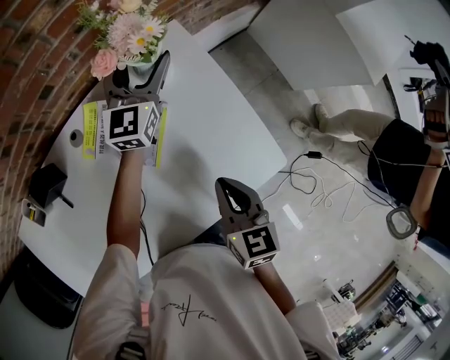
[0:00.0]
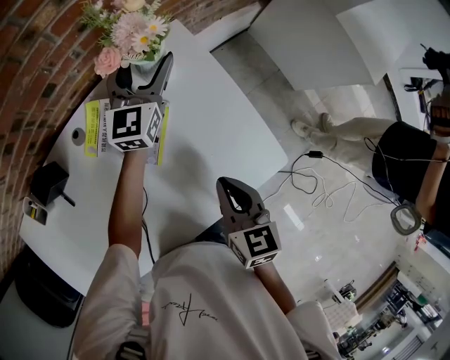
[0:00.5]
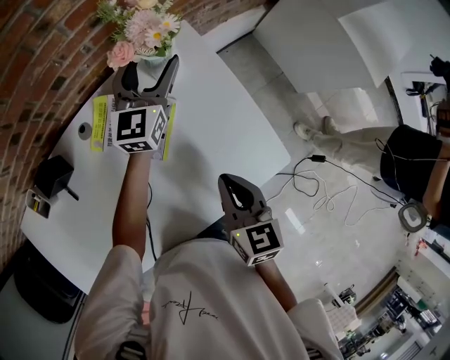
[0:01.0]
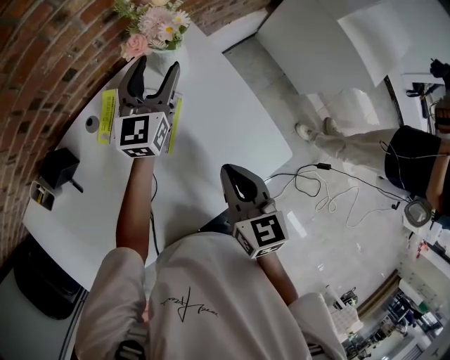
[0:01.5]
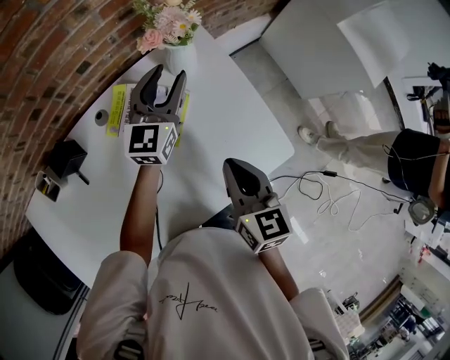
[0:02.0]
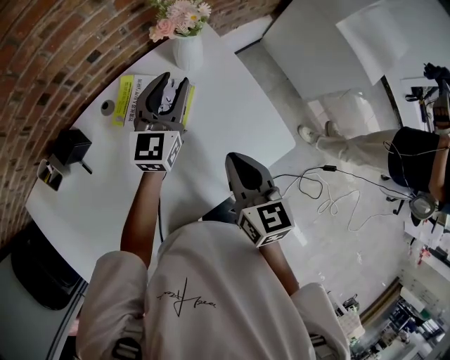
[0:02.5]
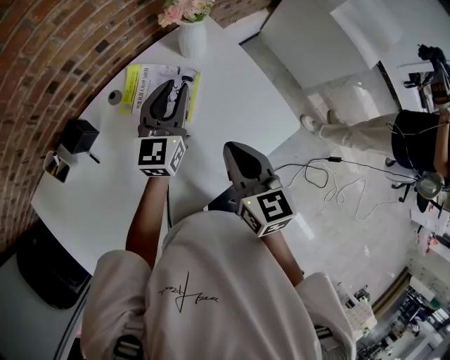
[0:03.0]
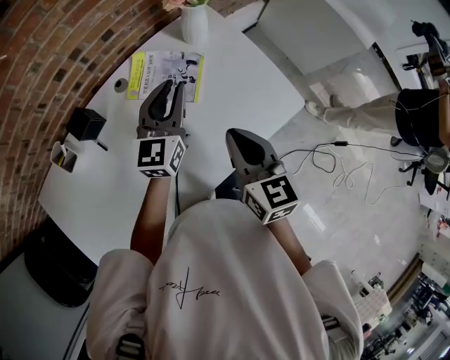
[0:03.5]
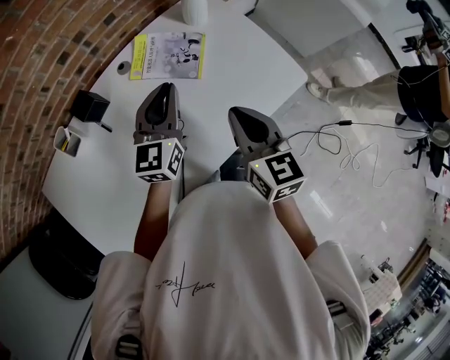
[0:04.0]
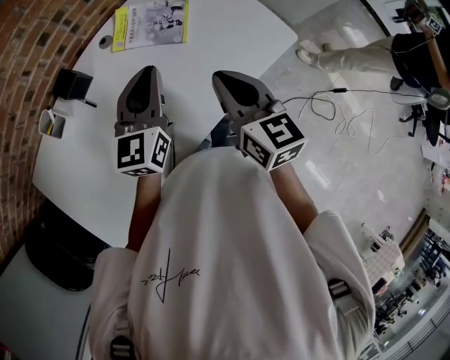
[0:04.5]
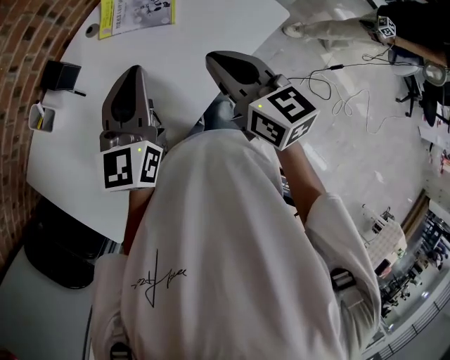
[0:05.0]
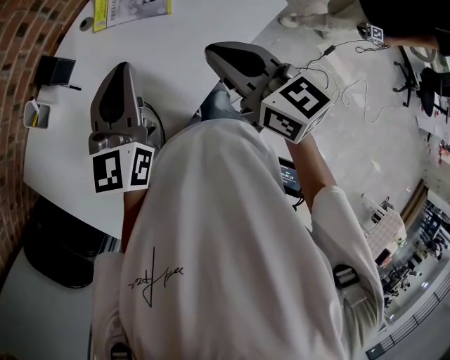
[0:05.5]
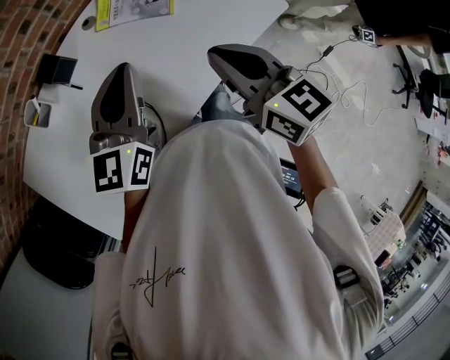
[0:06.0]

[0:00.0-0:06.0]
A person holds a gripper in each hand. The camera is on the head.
0:00.0 to 0:02.0: The right gripper heads upward, covering about 5 cm. Meanwhile the left gripper travels backward by approximately 10 cm, and closes.
0:02.0 to 0:04.0: The right gripper heads backward and to the left, covering roughly 15 cm. Meanwhile the left gripper heads backward and to the left, covering approximately 25 cm, and closes its fingers.
0:04.0 to 0:06.0: The left gripper goes approximately 15 cm backward, to the left and upward. The right gripper moves backward, roughly 5 cm.

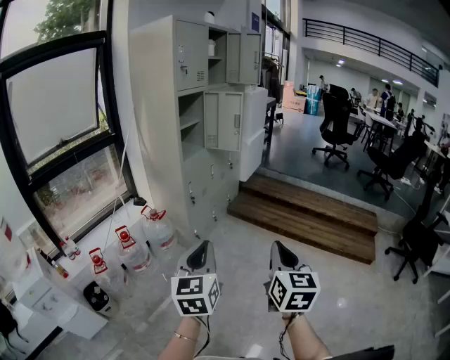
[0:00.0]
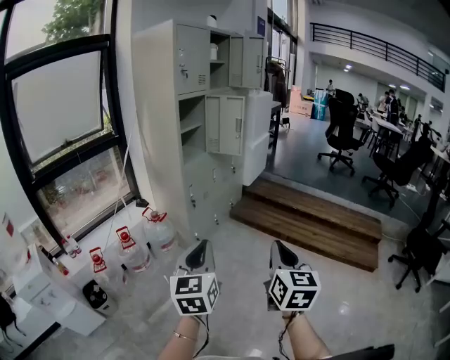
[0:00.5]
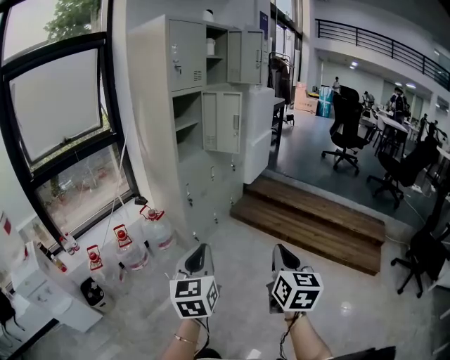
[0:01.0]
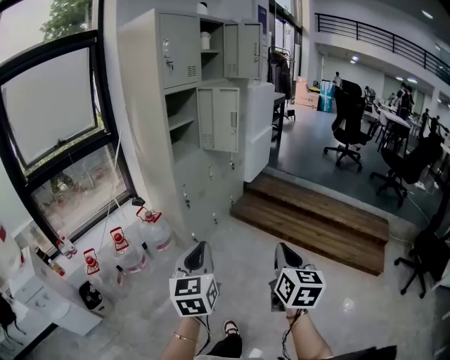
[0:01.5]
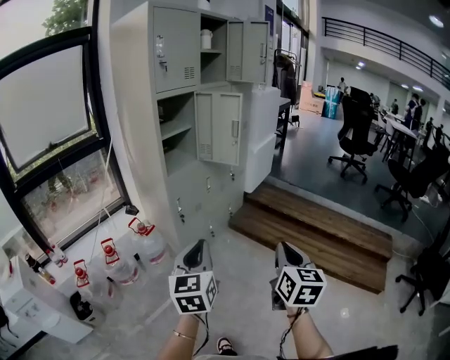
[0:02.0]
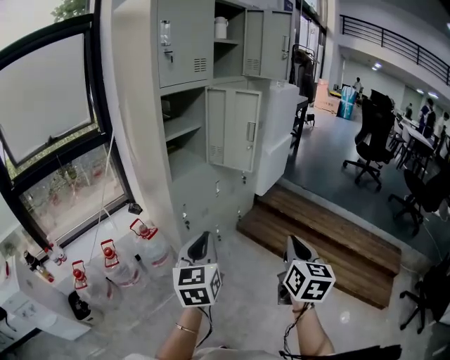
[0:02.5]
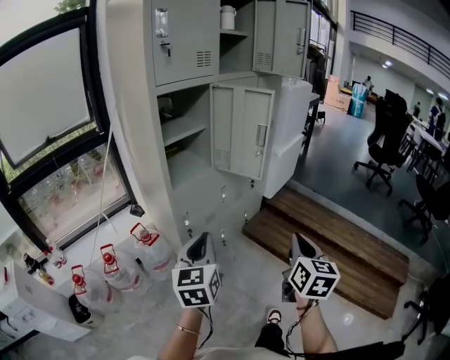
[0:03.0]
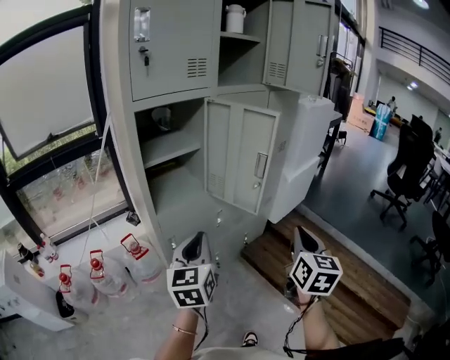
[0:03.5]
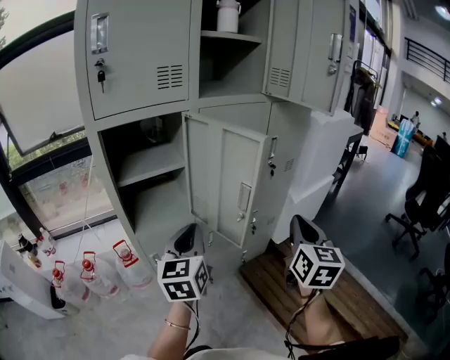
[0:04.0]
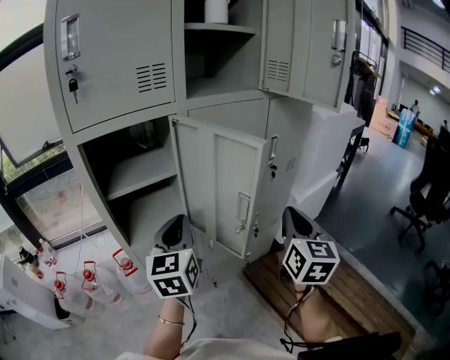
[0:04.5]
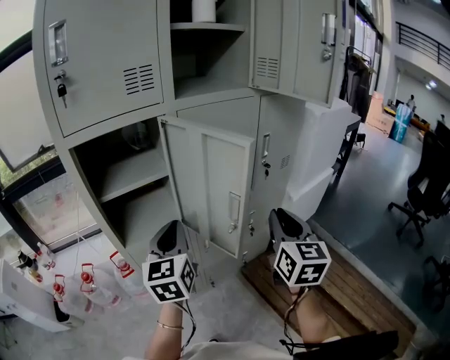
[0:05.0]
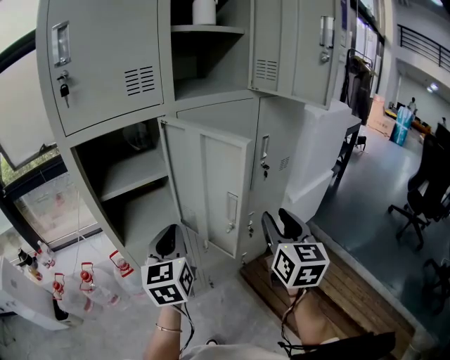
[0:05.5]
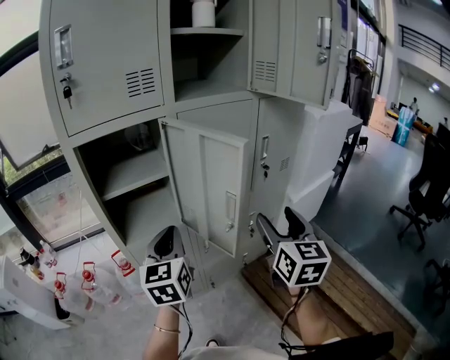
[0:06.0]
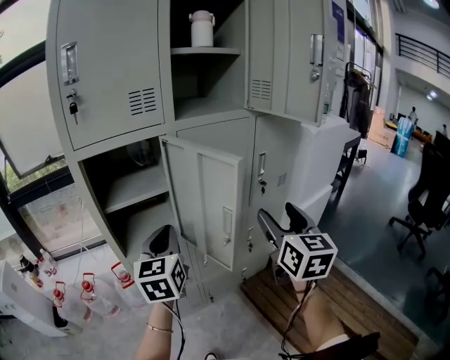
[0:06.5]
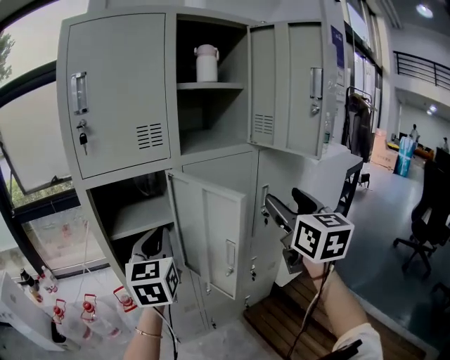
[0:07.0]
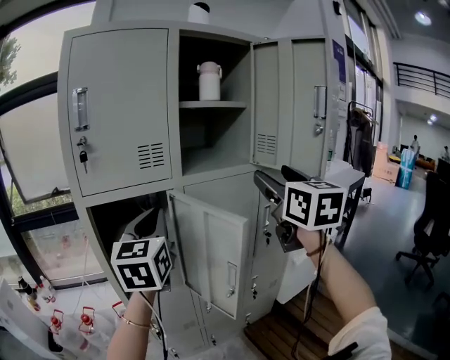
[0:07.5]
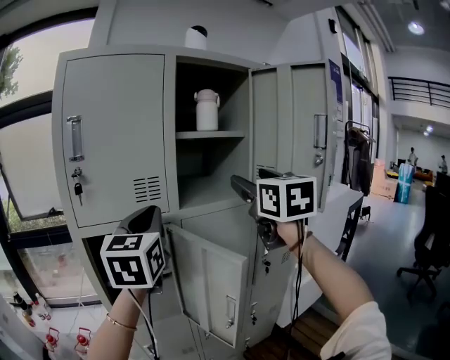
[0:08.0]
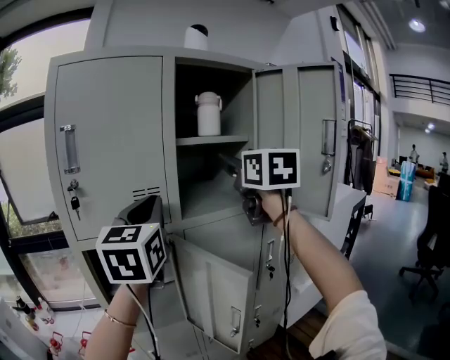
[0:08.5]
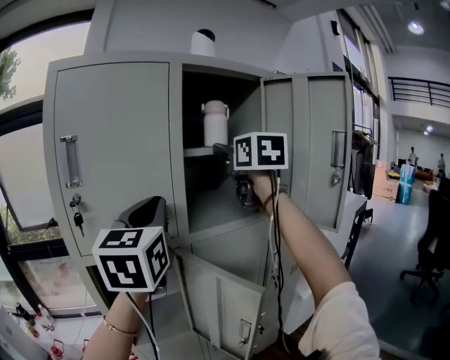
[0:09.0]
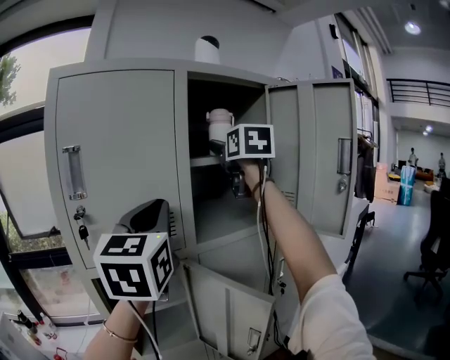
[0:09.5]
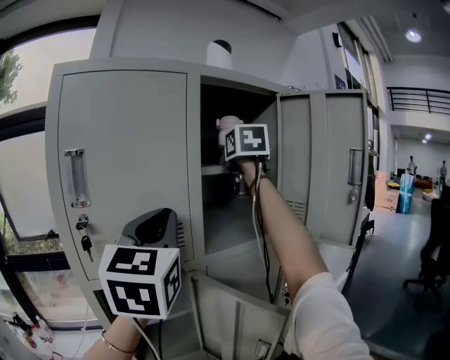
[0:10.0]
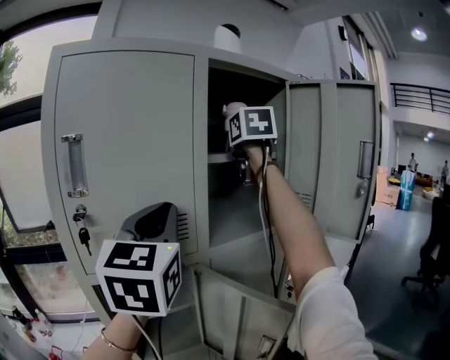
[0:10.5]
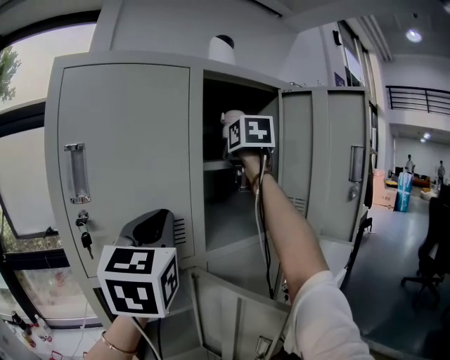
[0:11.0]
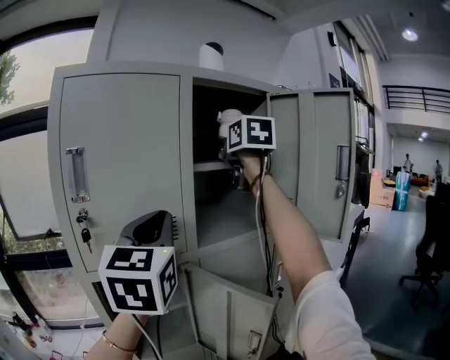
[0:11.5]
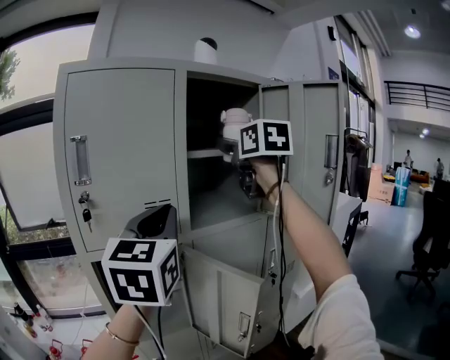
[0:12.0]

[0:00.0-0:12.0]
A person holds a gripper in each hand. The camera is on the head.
0:00.0 to 0:02.0: The right gripper is displaced forward and to the right by roughly 30 cm. Meanwhile the left gripper travels forward by about 25 cm.
0:02.0 to 0:04.0: The pair of grippers is taken forward, about 60 cm. The left gripper changes its angle by about 20 degrees; the right gripper rotates roughly 20 degrees.
0:04.0 to 0:06.0: The right gripper shifts approximately 5 cm forward, and opens up.
0:06.0 to 0:08.0: The right gripper shifts some 35 cm upward and forward; the left gripper is displaced upward by about 30 cm.
0:08.0 to 0:10.0: The left gripper moves upward, approximately 10 cm. The right gripper heads forward and upward, covering about 25 cm.
0:10.0 to 0:12.0: The right gripper moves backward, about 10 cm; the left gripper moves about 5 cm.

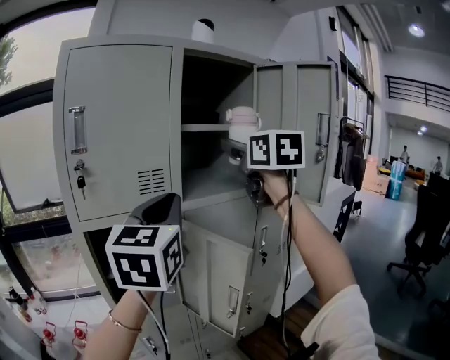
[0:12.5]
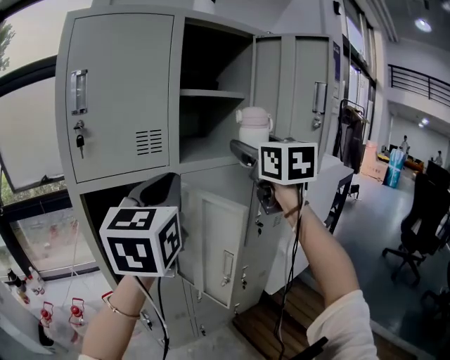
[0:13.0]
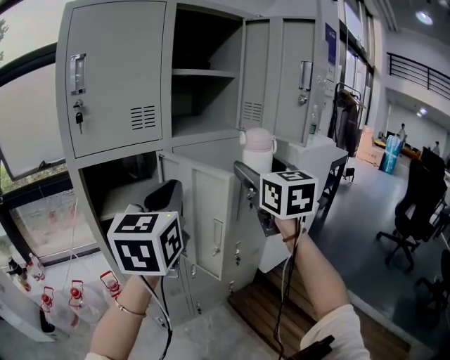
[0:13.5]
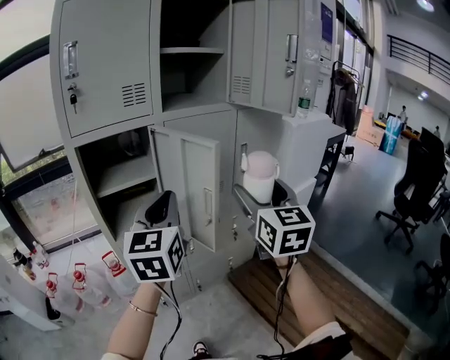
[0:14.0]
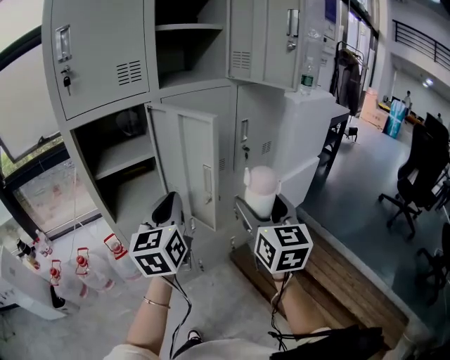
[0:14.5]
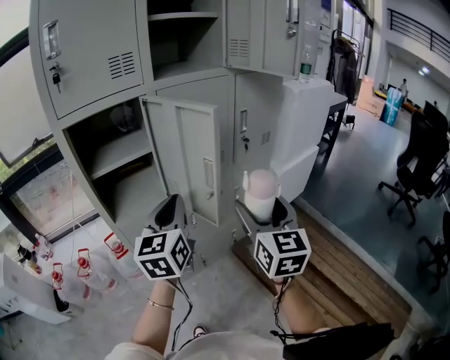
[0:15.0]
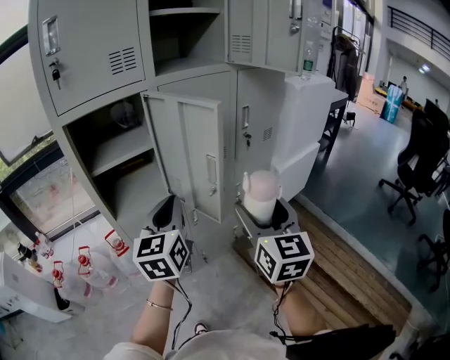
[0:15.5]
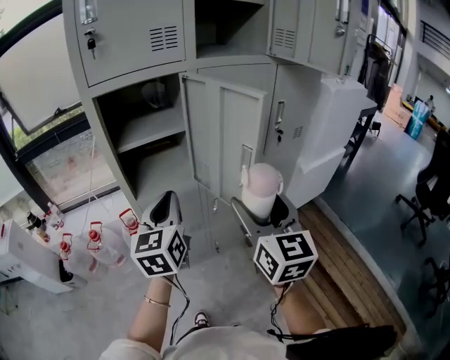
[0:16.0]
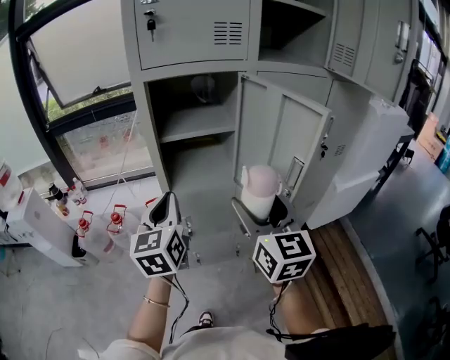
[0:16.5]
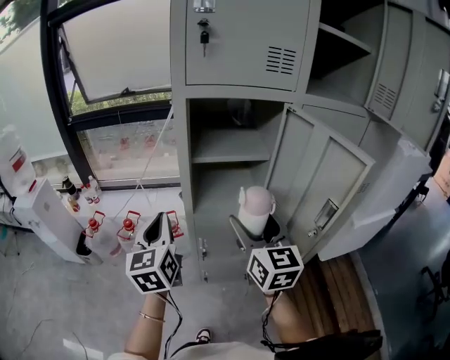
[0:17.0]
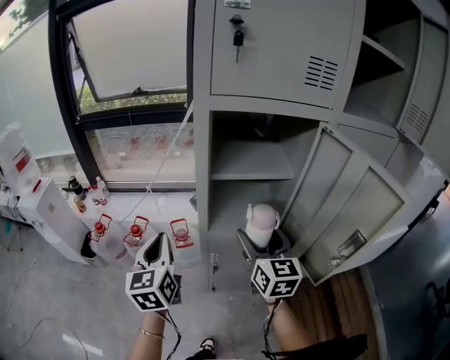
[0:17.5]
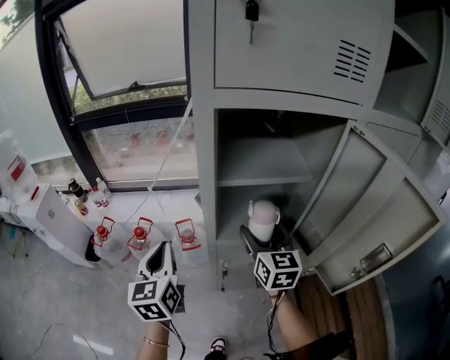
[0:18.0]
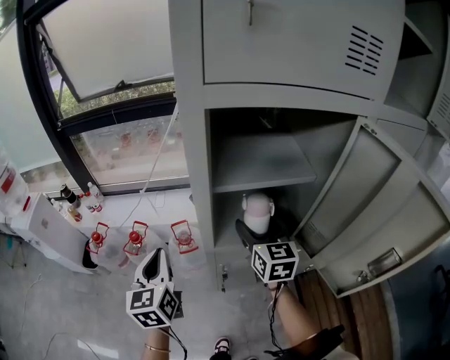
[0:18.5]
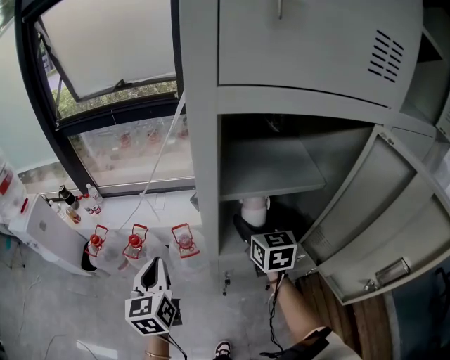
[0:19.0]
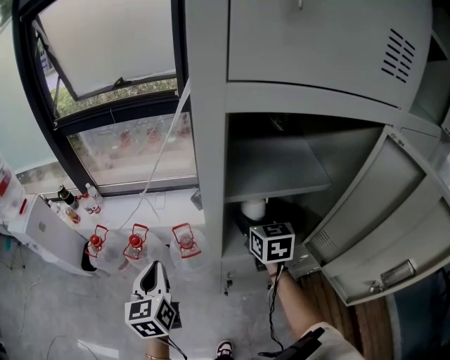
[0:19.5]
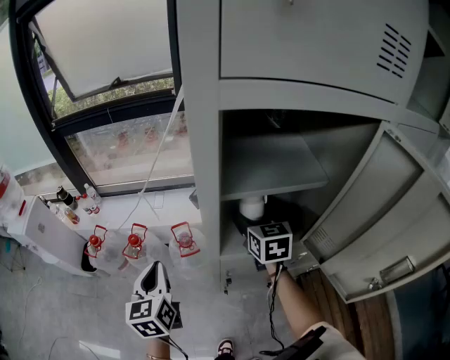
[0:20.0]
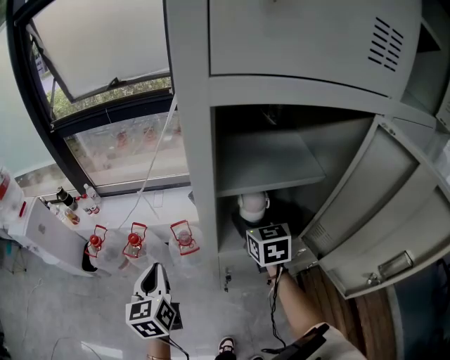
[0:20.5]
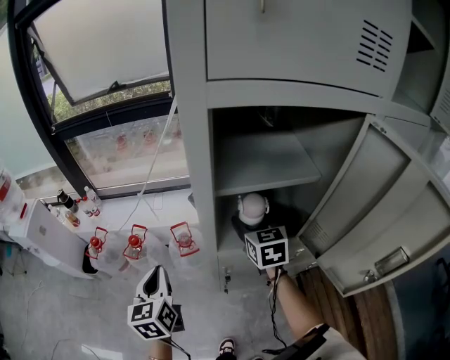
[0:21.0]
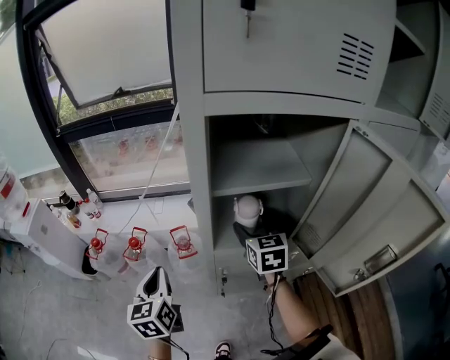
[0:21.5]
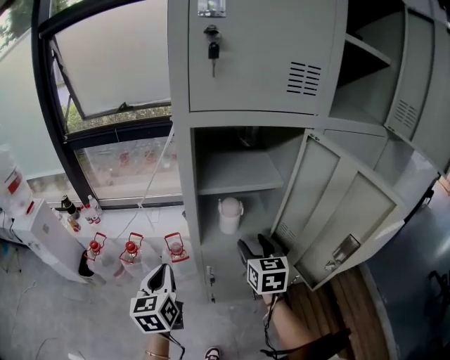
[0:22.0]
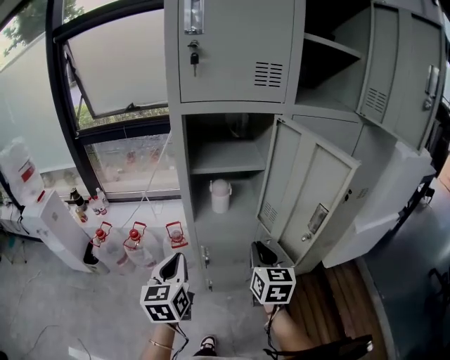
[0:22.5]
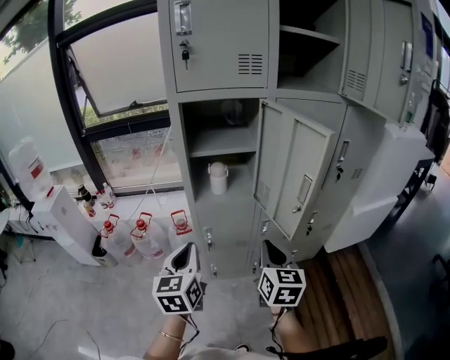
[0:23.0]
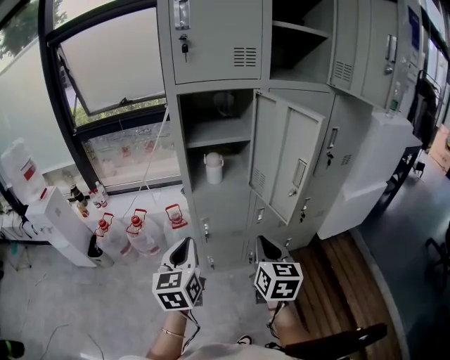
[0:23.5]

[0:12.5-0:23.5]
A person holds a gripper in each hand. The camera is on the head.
0:12.5 to 0:14.5: The left gripper is displaced downward by about 25 cm. Meanwhile the right gripper goes about 50 cm downward and backward.
0:14.5 to 0:16.0: The right gripper travels to the left by approximately 10 cm. Meanwhile the left gripper is displaced to the left and downward by about 10 cm.
0:16.0 to 0:18.0: The left gripper moves to the left and forward, some 30 cm, and changes its angle by some 30 degrees. The right gripper moves forward, to the left and downward, some 40 cm, and swivels about 20 degrees.
0:18.0 to 0:20.0: The right gripper moves forward, about 10 cm, while the left gripper shifts about 5 cm downward.
0:20.0 to 0:21.5: The right gripper heads backward, covering some 5 cm.
0:21.5 to 0:23.5: The right gripper is displaced backward by roughly 40 cm, and closes; the left gripper is displaced backward, to the right and upward by roughly 30 cm.
